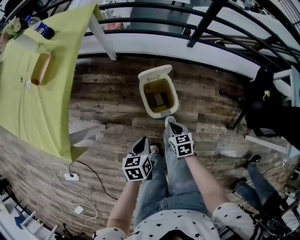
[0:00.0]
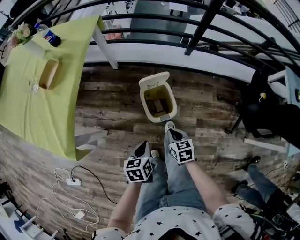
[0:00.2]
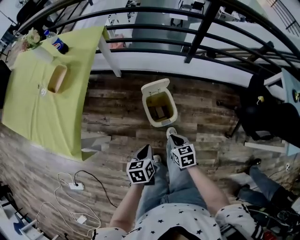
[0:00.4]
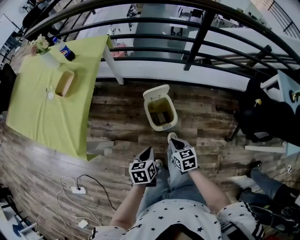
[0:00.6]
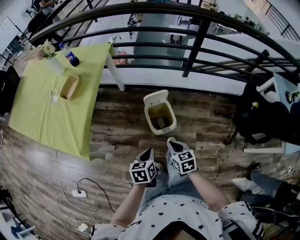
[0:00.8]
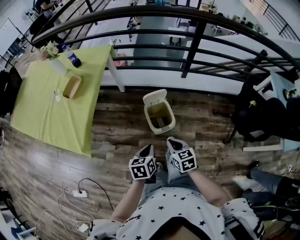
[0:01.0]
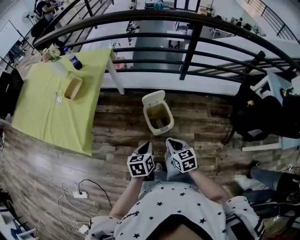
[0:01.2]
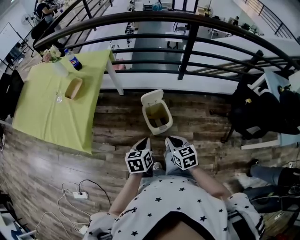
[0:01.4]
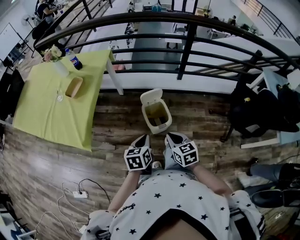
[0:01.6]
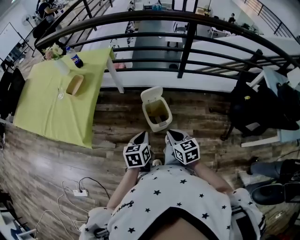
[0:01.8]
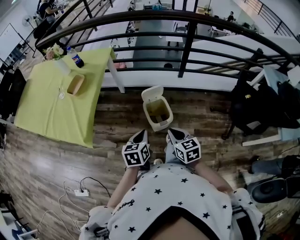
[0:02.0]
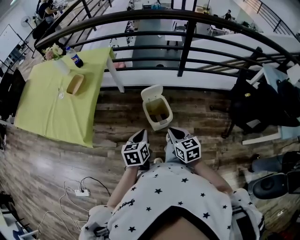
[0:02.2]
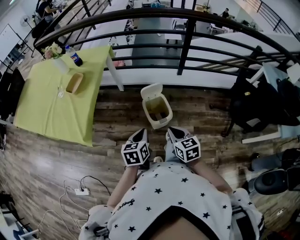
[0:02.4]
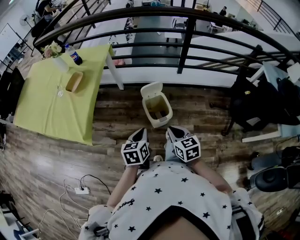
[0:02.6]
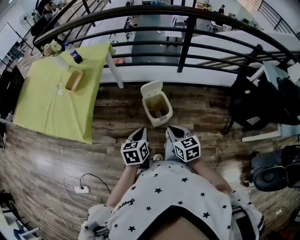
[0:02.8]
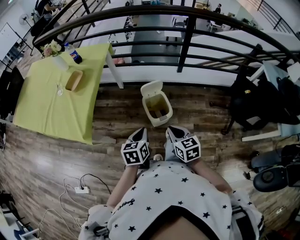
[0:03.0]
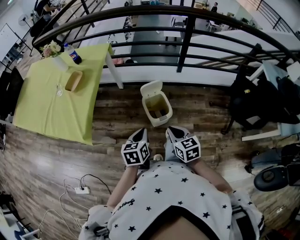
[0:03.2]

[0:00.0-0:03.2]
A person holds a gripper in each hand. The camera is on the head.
0:00.0 to 0:01.6: The grippers both shift upward by roughly 25 cm.
0:01.6 to 0:03.2: The grippers stay close to where they were, moving slightly.

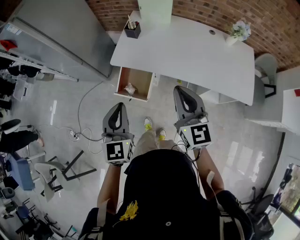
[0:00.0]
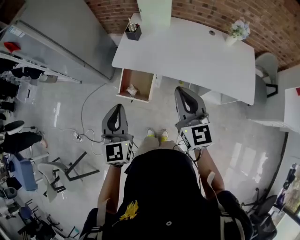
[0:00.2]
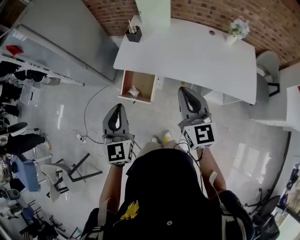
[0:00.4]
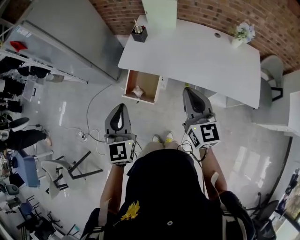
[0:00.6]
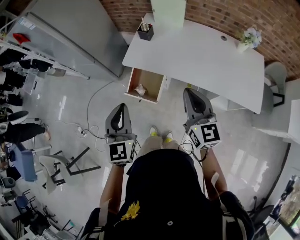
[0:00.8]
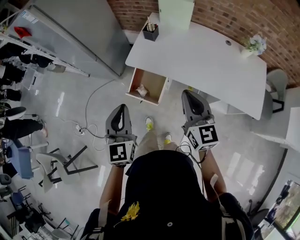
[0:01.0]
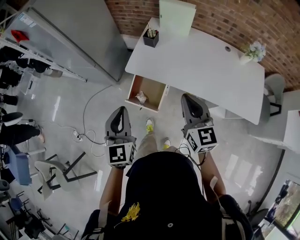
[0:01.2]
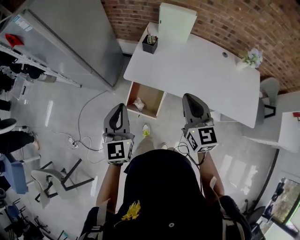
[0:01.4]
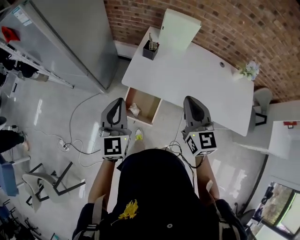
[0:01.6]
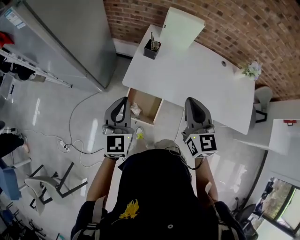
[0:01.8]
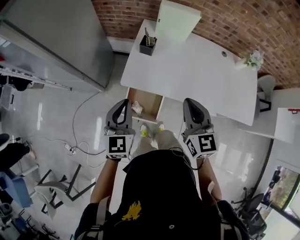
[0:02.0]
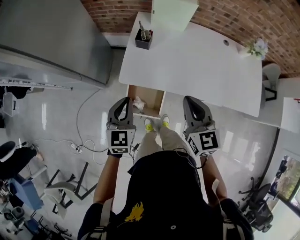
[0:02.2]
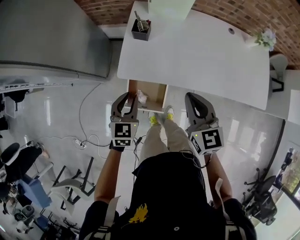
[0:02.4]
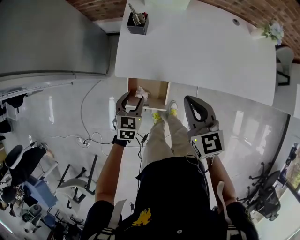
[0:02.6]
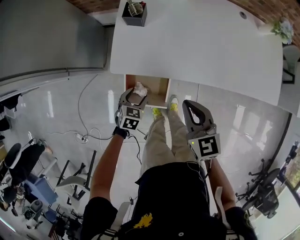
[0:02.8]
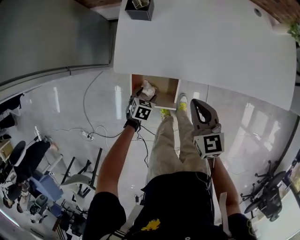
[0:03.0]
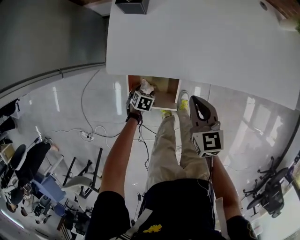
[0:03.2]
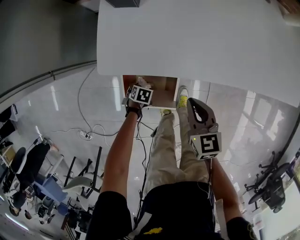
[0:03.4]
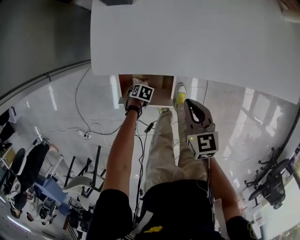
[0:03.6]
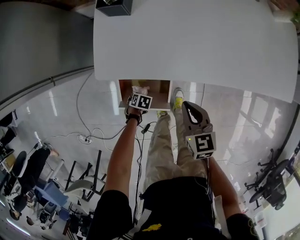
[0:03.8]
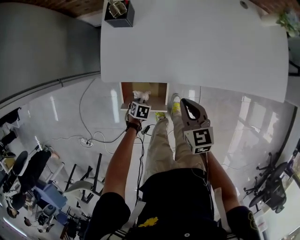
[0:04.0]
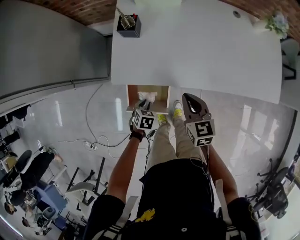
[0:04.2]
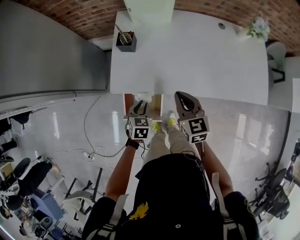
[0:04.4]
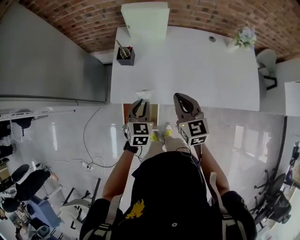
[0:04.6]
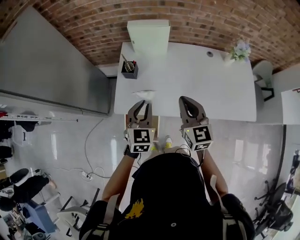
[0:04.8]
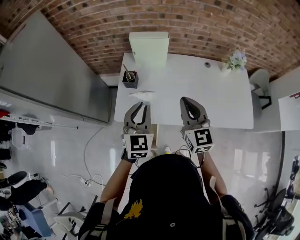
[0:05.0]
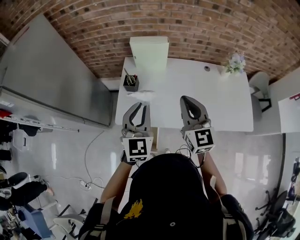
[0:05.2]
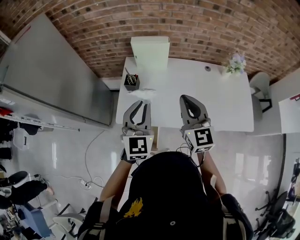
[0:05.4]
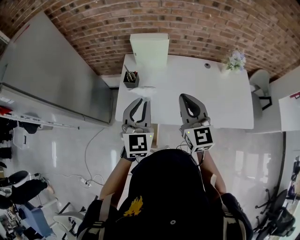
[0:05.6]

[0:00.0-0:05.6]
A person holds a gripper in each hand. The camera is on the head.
0:00.0 to 0:01.4: The grippers both shift forward and to the left by about 15 cm.
0:01.4 to 0:02.8: The left gripper is displaced downward by approximately 40 cm, points its fingers some 50 degrees further downward, and opens its fingers; the right gripper shifts about 20 cm downward.
0:02.8 to 0:04.2: The left gripper goes downward and returns, about 30 cm each way, and closes up. The right gripper travels downward and back again, some 20 cm each way.
0:04.2 to 0:05.6: The right gripper is displaced upward by some 30 cm, and tilts its fingers about 30 degrees upward. The left gripper moves upward, about 50 cm, and points its fingers some 60 degrees further upward.

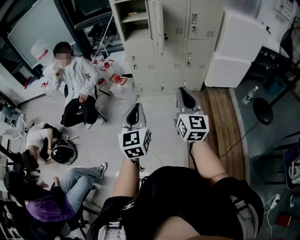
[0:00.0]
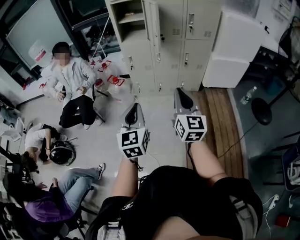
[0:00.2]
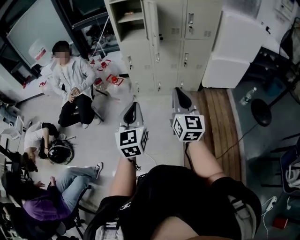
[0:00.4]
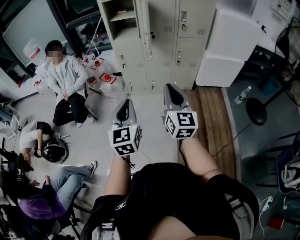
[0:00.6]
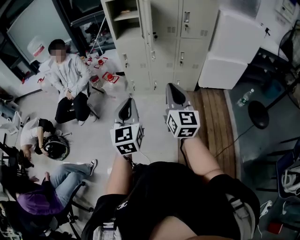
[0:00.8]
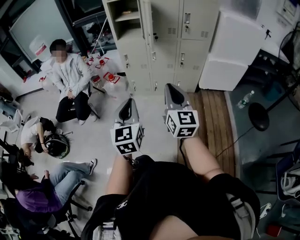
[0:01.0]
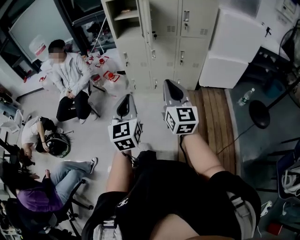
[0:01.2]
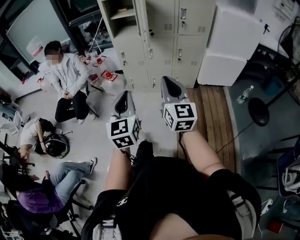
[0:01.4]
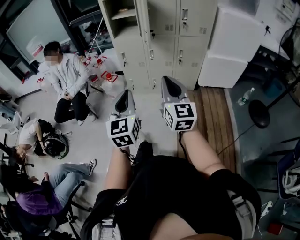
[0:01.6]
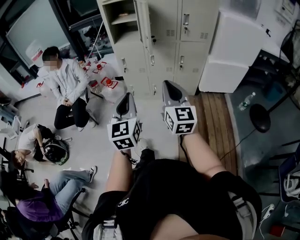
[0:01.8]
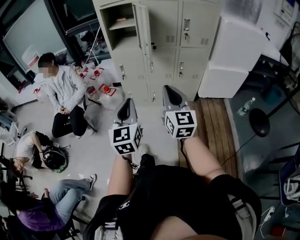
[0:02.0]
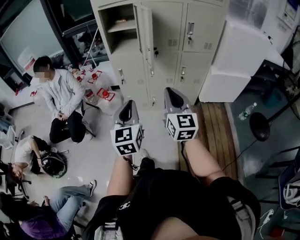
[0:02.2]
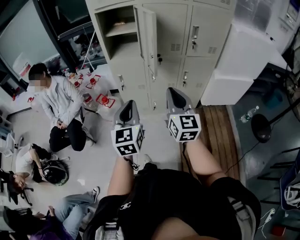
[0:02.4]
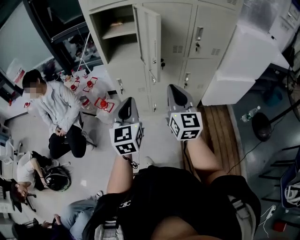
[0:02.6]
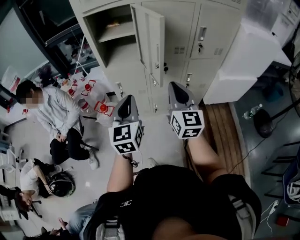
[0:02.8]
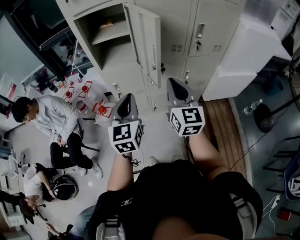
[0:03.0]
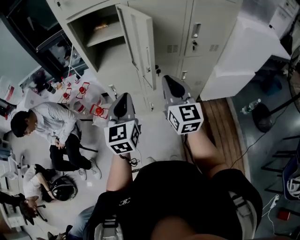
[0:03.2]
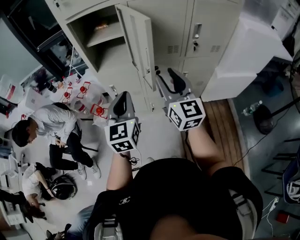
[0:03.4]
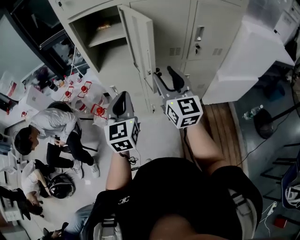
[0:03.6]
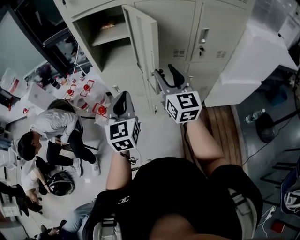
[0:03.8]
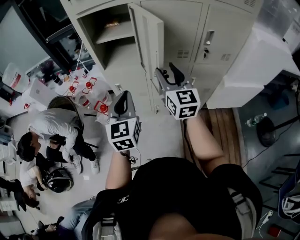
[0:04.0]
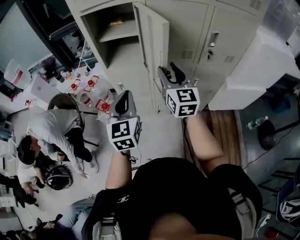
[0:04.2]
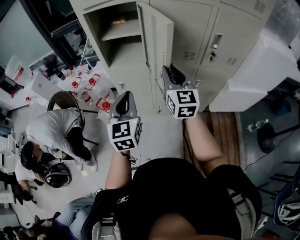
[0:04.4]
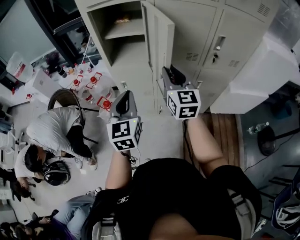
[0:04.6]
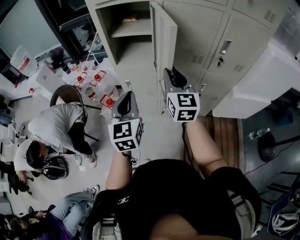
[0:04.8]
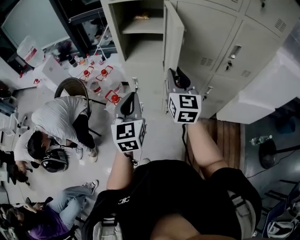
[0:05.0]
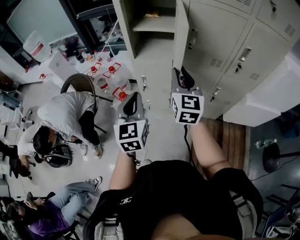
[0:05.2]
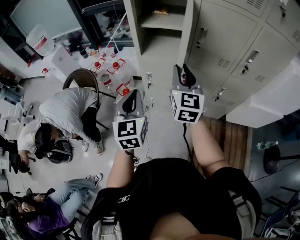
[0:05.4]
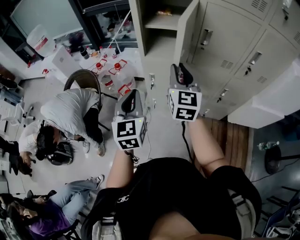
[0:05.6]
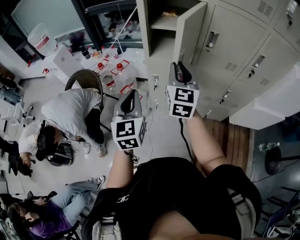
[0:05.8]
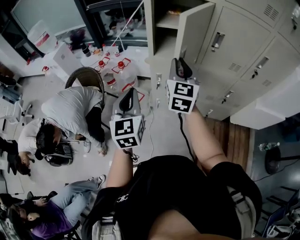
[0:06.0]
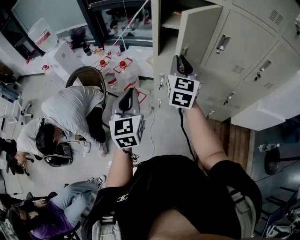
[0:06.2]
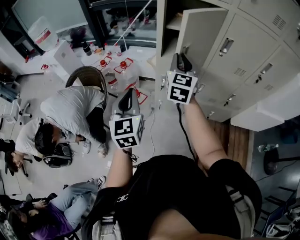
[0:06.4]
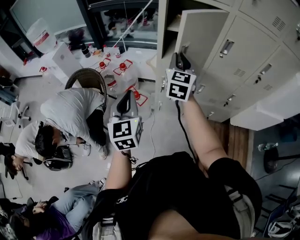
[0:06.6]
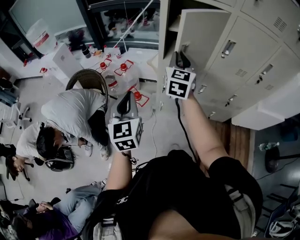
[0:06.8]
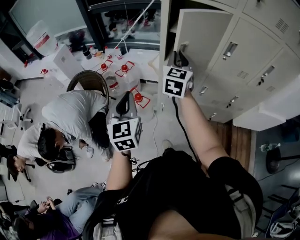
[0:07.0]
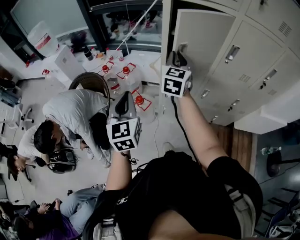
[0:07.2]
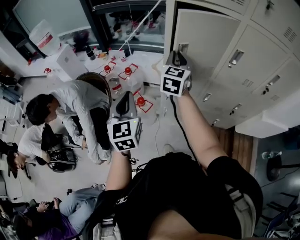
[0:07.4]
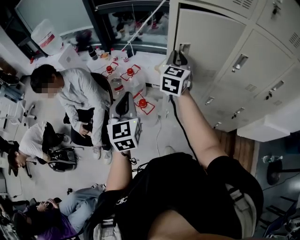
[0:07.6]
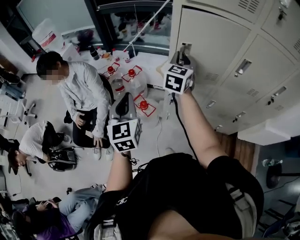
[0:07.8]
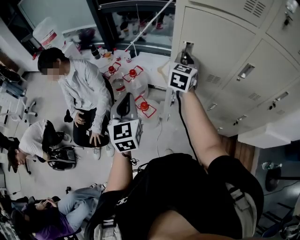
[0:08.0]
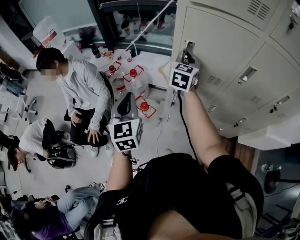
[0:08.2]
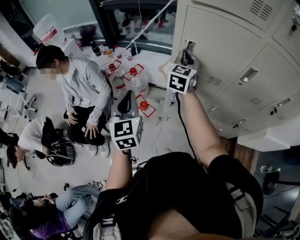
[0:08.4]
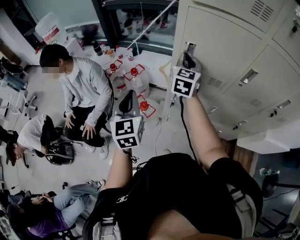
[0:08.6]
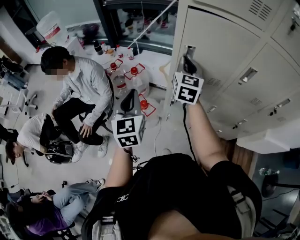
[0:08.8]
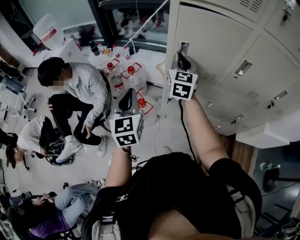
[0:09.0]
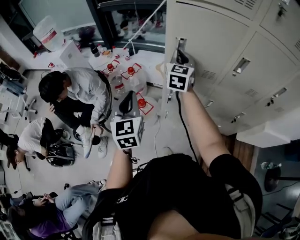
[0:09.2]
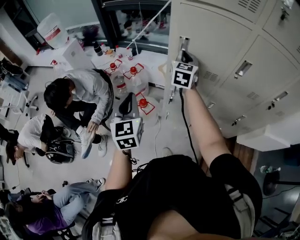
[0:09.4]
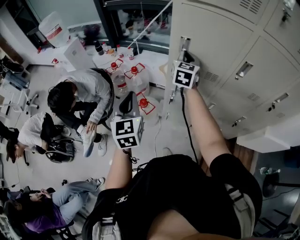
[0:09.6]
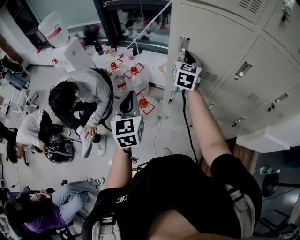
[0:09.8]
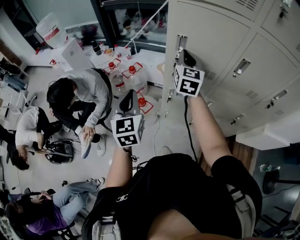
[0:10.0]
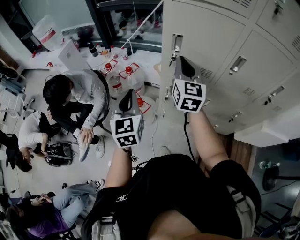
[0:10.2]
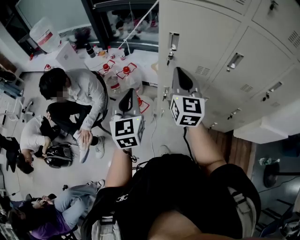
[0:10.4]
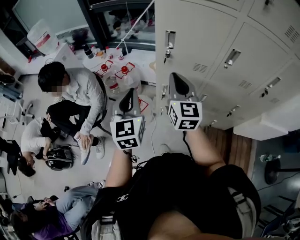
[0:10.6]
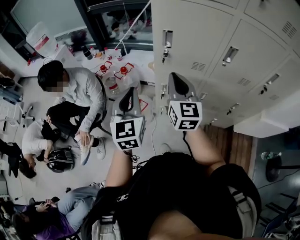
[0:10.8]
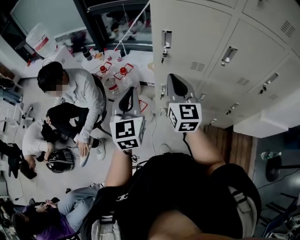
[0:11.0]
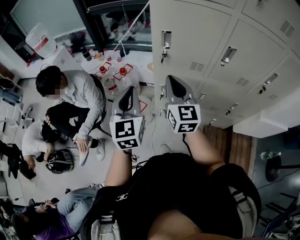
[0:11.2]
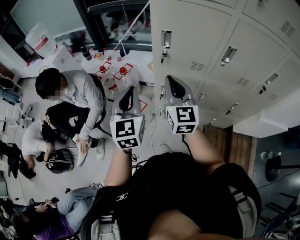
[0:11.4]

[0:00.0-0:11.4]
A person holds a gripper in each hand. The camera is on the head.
0:00.0 to 0:01.4: The right gripper travels to the right by some 5 cm; the left gripper moves to the right, roughly 10 cm.
0:01.4 to 0:02.8: Both grippers move forward, approximately 40 cm.
0:02.8 to 0:04.2: The right gripper is displaced forward by about 15 cm, and opens its fingers; the left gripper goes roughly 5 cm forward.
0:04.2 to 0:05.6: The grippers both shift to the left by roughly 15 cm. The right gripper closes up.
0:05.6 to 0:07.2: The right gripper shifts some 20 cm to the left and forward. The left gripper shifts approximately 15 cm to the left.
0:07.2 to 0:08.6: Both grippers move forward, approximately 10 cm.
0:08.6 to 0:10.0: The right gripper goes forward and backward, roughly 5 cm each way, reversing 2 times.
0:10.0 to 0:11.4: The left gripper shifts by roughly 5 cm; the right gripper moves backward, roughly 15 cm.

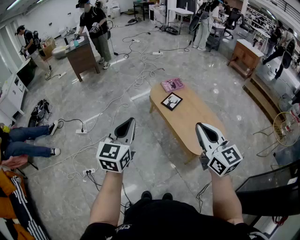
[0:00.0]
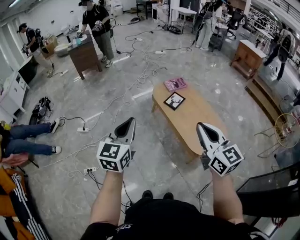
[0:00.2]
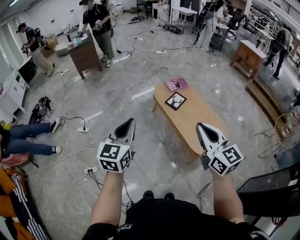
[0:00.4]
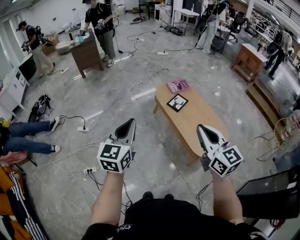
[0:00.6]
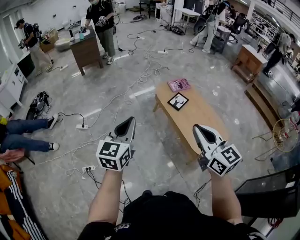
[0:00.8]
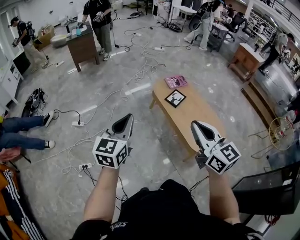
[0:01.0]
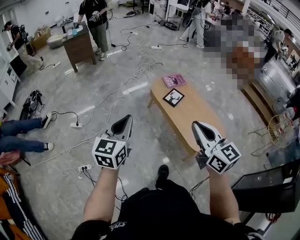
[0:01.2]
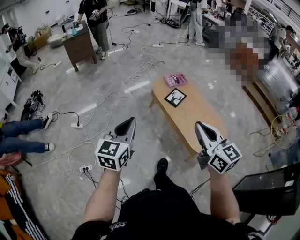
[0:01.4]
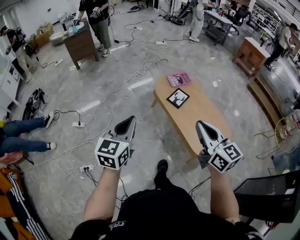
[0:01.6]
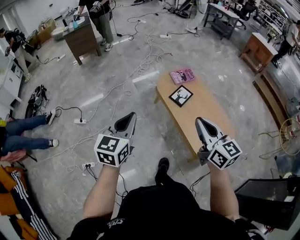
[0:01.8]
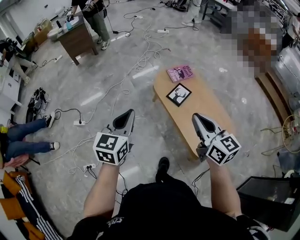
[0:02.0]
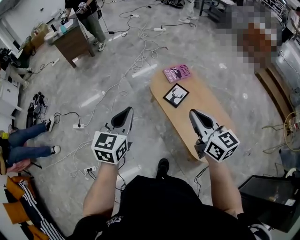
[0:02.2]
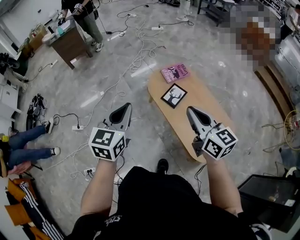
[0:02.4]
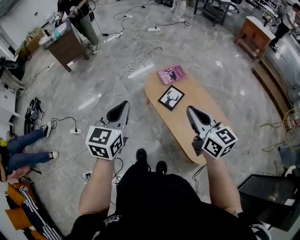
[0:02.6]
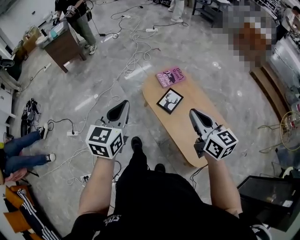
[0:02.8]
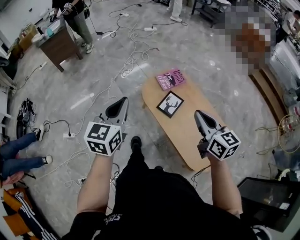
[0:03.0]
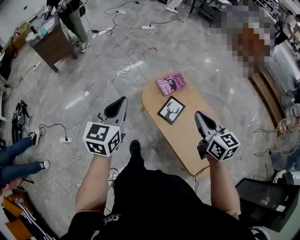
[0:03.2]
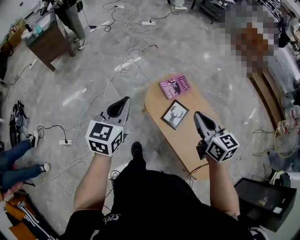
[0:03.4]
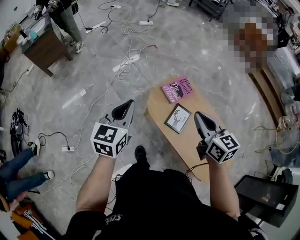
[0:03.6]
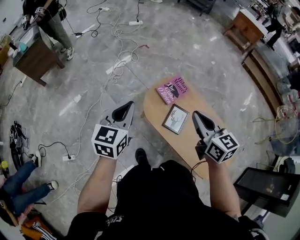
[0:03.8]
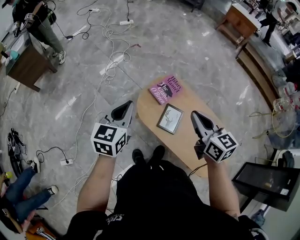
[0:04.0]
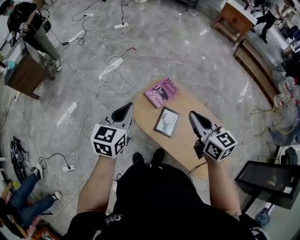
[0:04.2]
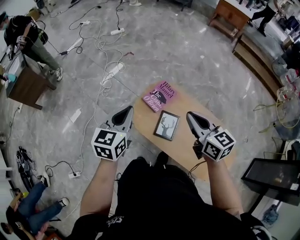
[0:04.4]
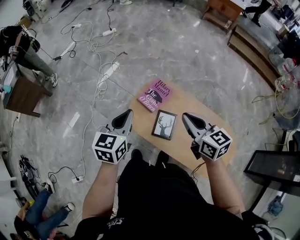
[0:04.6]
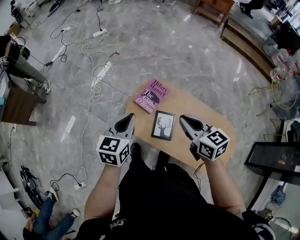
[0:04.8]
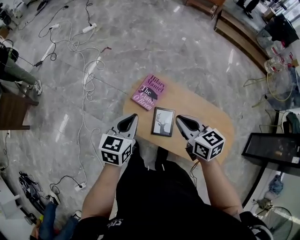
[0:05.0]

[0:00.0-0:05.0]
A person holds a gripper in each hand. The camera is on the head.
0:00.0 to 0:01.6: The left gripper heads forward, downward and to the left, covering roughly 15 cm, while the right gripper shifts about 15 cm forward, to the left and downward.
0:01.6 to 0:03.4: Both grippers are carried forward, about 50 cm.
0:03.4 to 0:05.0: The left gripper goes about 30 cm forward, to the right and downward, and rotates about 30 degrees. The right gripper goes roughly 20 cm forward and downward, and swivels some 20 degrees.
